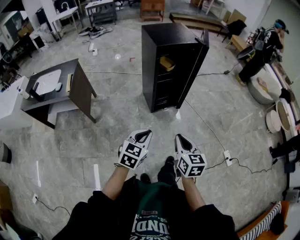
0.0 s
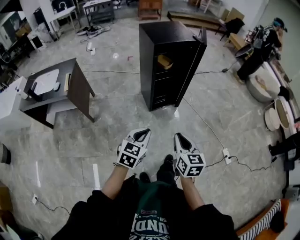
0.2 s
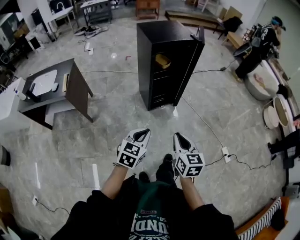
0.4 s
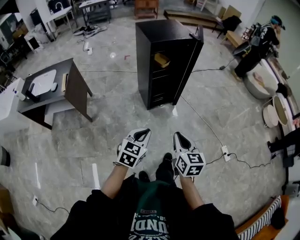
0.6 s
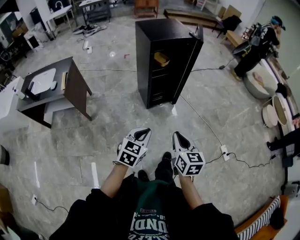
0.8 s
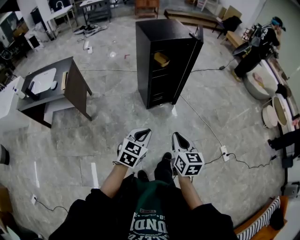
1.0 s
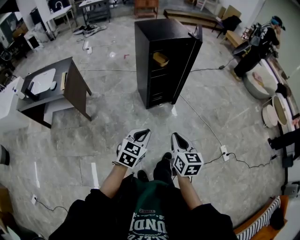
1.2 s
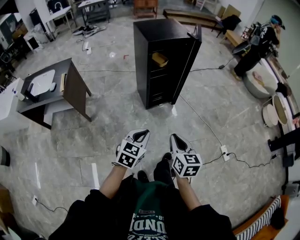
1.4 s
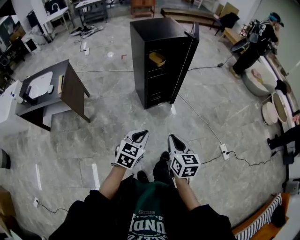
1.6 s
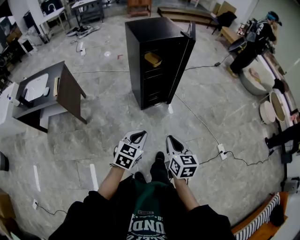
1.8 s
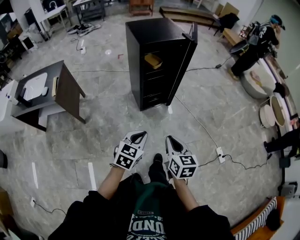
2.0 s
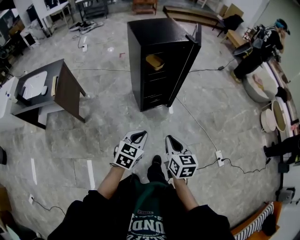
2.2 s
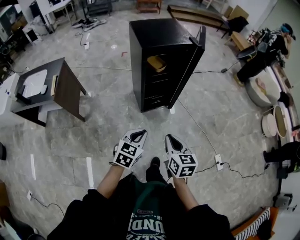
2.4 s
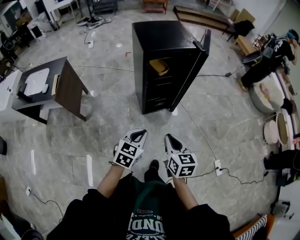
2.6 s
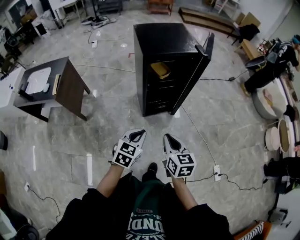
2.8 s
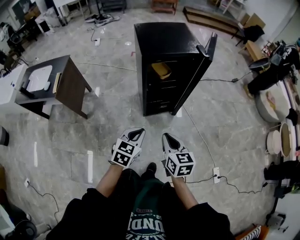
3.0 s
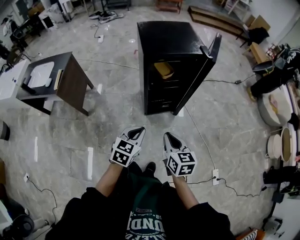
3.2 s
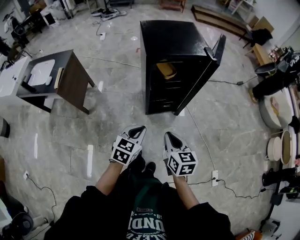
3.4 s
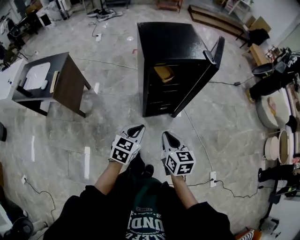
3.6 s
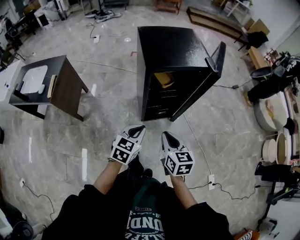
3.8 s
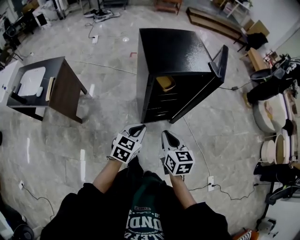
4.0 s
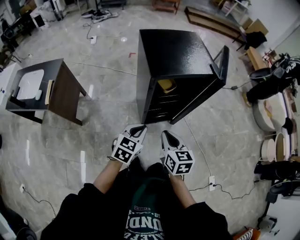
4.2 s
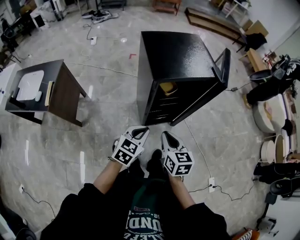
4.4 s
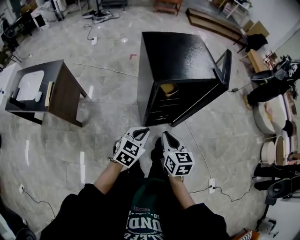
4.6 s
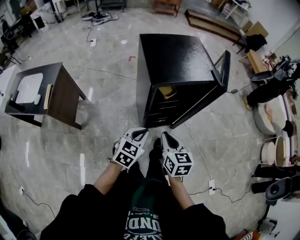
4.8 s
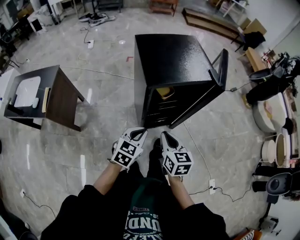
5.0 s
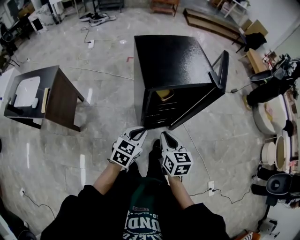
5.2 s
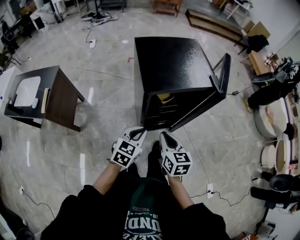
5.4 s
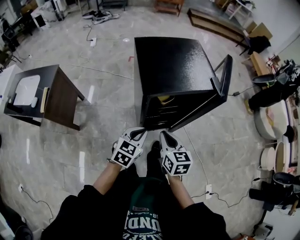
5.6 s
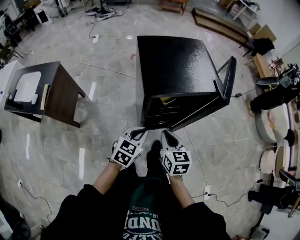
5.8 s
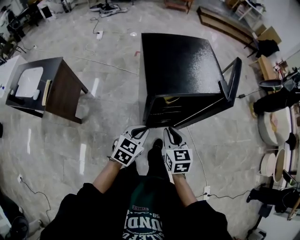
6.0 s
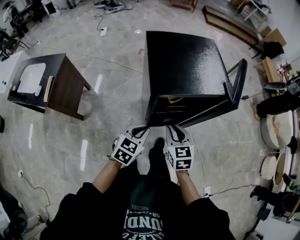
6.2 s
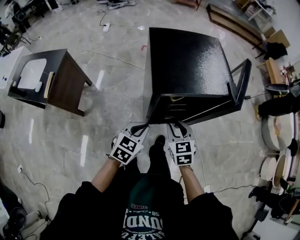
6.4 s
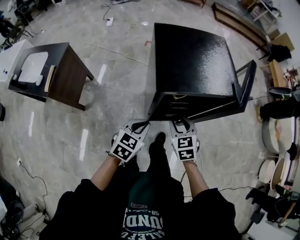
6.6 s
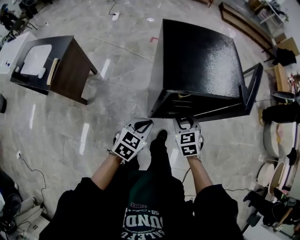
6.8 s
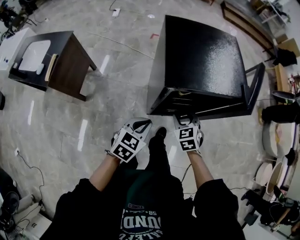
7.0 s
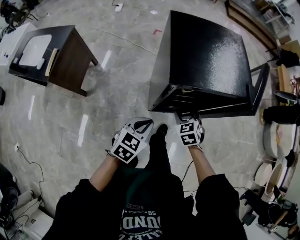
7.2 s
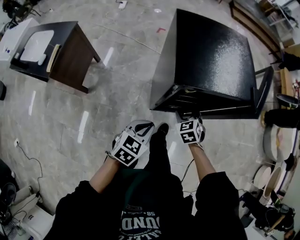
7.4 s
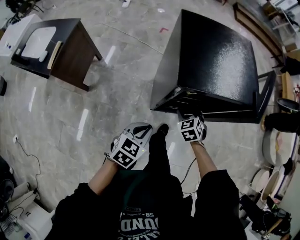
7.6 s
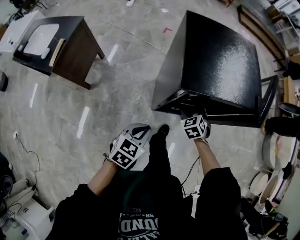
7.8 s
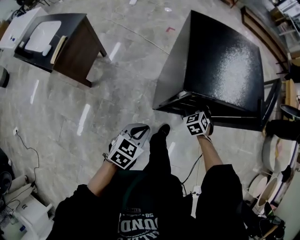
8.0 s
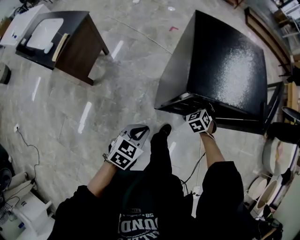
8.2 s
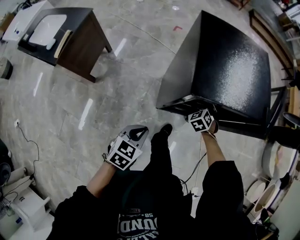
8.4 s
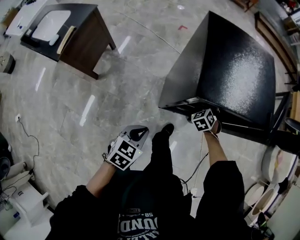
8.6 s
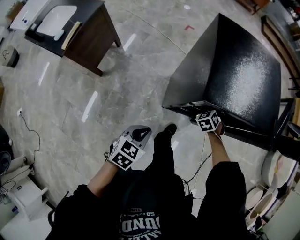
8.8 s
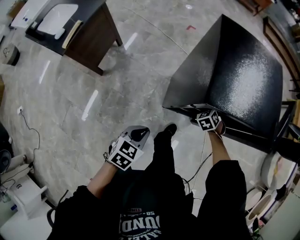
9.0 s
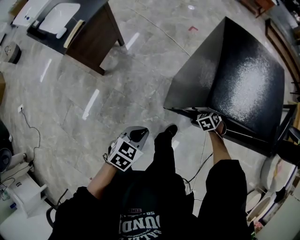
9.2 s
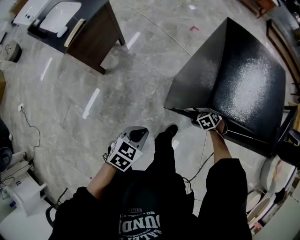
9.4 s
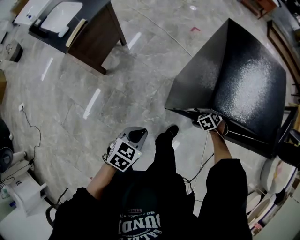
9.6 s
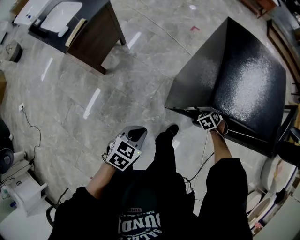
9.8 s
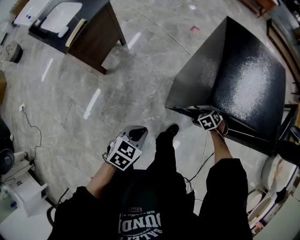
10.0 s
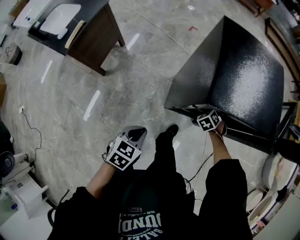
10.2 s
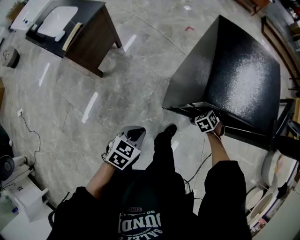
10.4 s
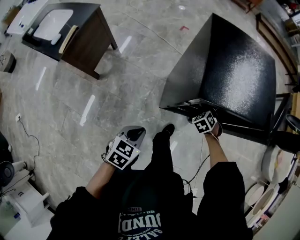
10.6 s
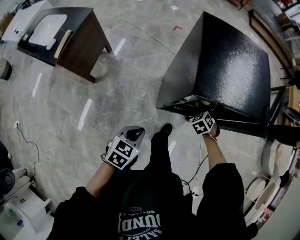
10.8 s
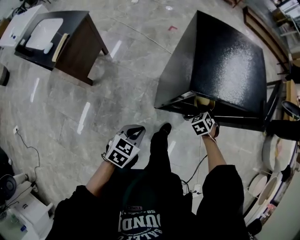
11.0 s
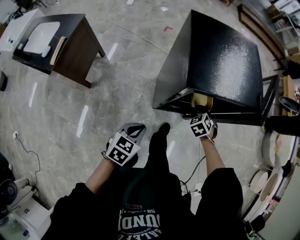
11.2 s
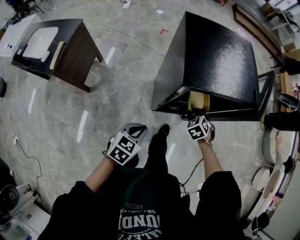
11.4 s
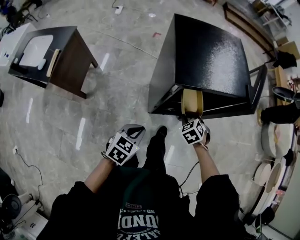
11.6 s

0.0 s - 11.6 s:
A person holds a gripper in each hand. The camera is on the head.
0.0 s - 1.4 s: There are only small adjustments of the grippers.
1.4 s - 2.8 s: Both grippers travel together forward, some 20 cm.
2.8 s - 4.4 s: Both grippers travel together forward, approximately 20 cm.
4.4 s - 5.8 s: The two grippers go roughly 10 cm forward.
5.8 s - 7.2 s: The right gripper goes roughly 15 cm downward and forward, rotates roughly 40 degrees, and opens up.
7.2 s - 8.8 s: The left gripper goes some 10 cm downward and to the left, while the right gripper moves forward and downward, some 15 cm, and swivels some 20 degrees.
8.8 s - 10.2 s: The right gripper closes up.
10.2 s - 11.6 s: The right gripper heads backward and upward, covering some 15 cm, while the left gripper ends up some 5 cm from where it was.

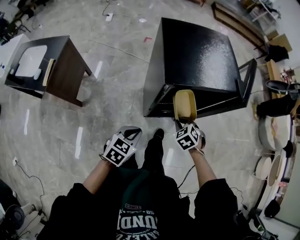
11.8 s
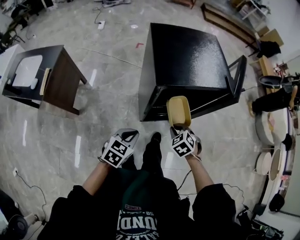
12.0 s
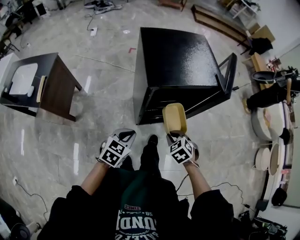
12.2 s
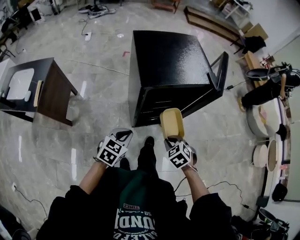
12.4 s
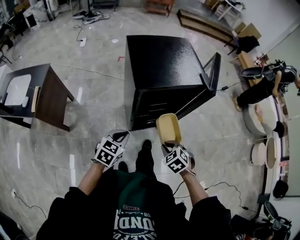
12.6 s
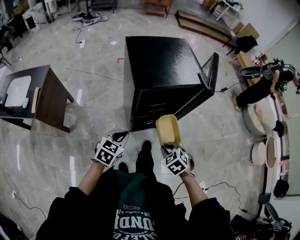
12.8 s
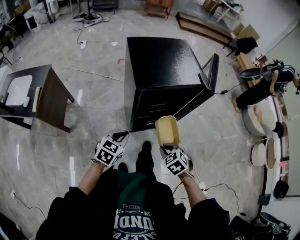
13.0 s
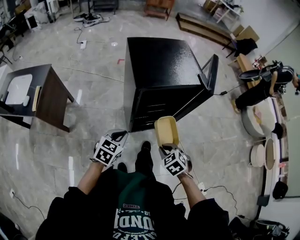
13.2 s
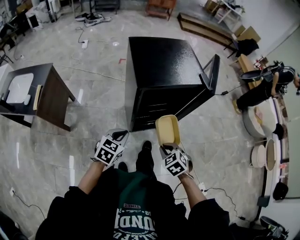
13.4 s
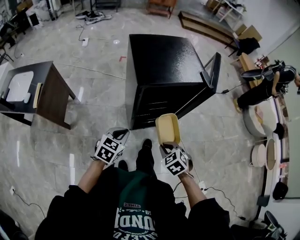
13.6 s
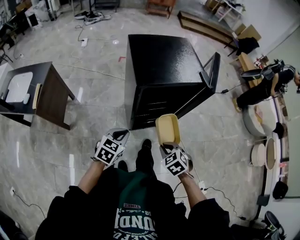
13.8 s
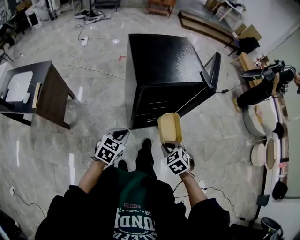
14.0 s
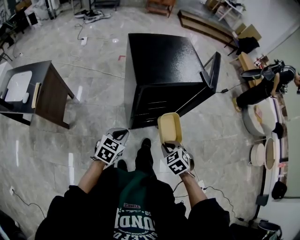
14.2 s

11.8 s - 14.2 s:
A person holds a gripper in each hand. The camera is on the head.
11.8 s - 13.0 s: The right gripper is displaced backward and upward by some 15 cm.
13.0 s - 14.2 s: The two grippers keep their place.

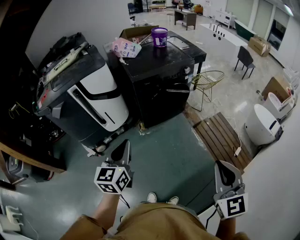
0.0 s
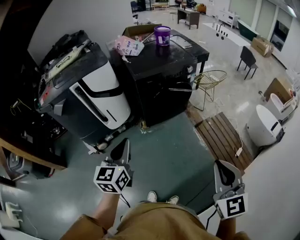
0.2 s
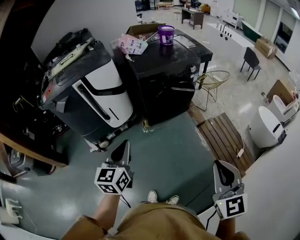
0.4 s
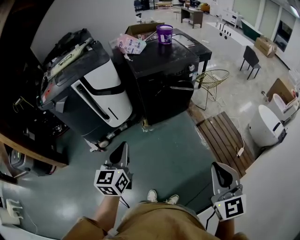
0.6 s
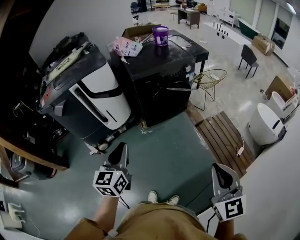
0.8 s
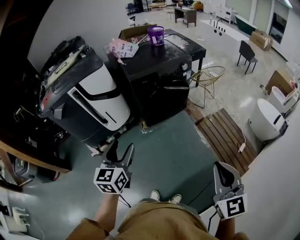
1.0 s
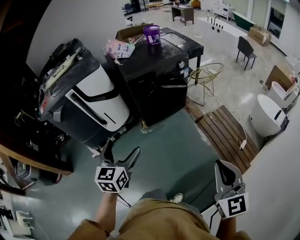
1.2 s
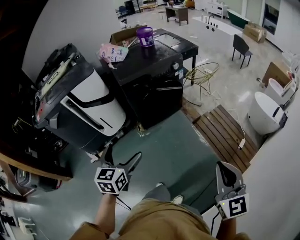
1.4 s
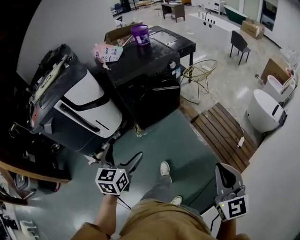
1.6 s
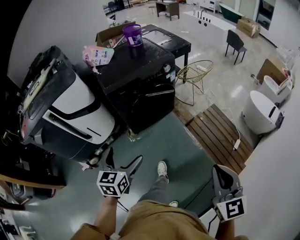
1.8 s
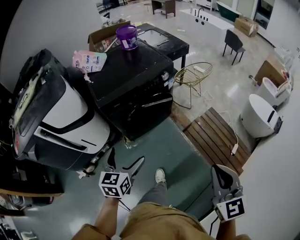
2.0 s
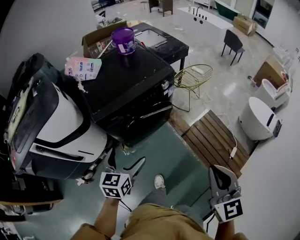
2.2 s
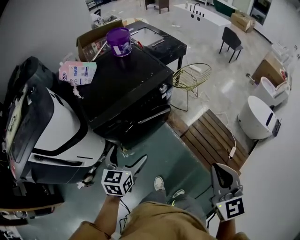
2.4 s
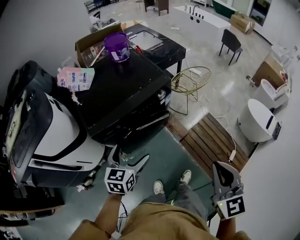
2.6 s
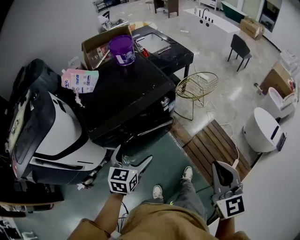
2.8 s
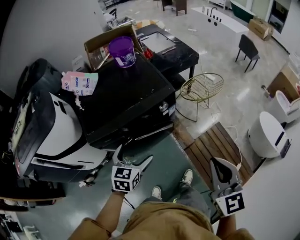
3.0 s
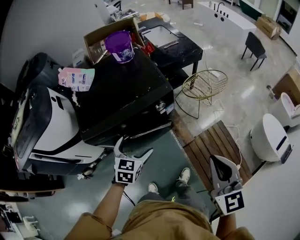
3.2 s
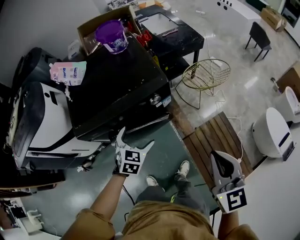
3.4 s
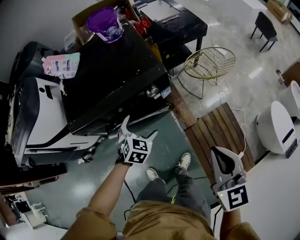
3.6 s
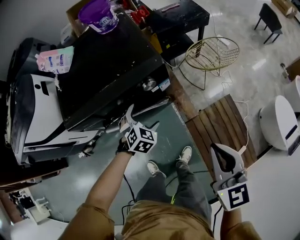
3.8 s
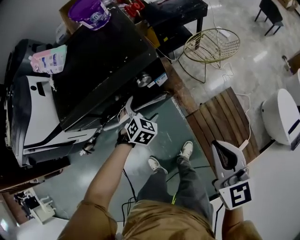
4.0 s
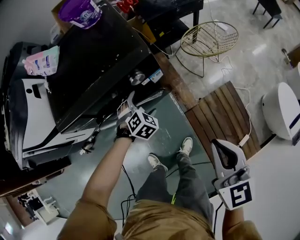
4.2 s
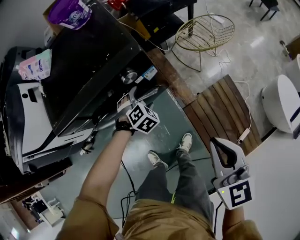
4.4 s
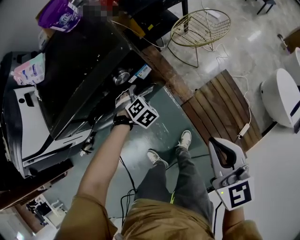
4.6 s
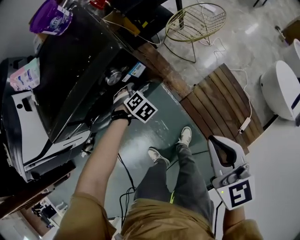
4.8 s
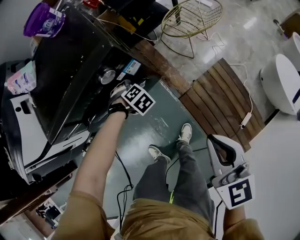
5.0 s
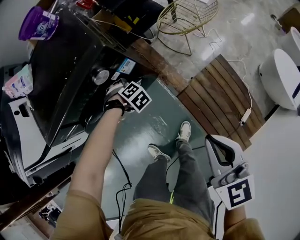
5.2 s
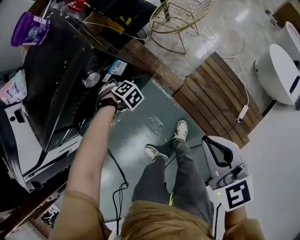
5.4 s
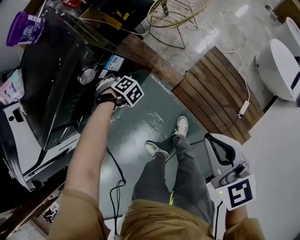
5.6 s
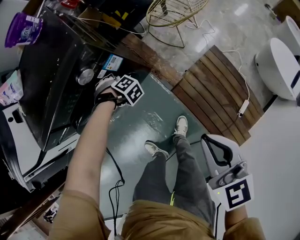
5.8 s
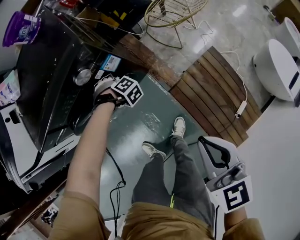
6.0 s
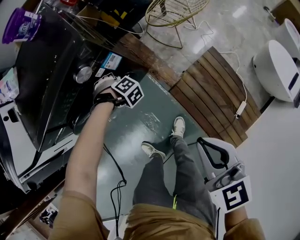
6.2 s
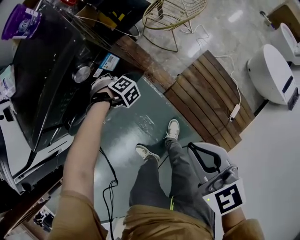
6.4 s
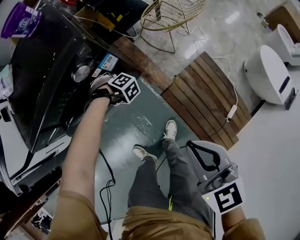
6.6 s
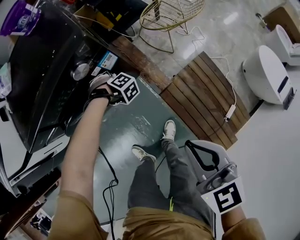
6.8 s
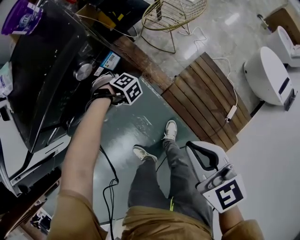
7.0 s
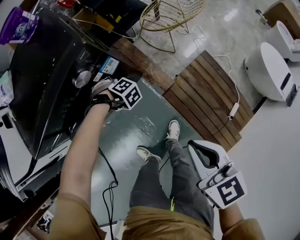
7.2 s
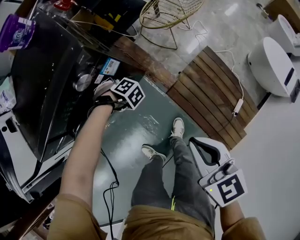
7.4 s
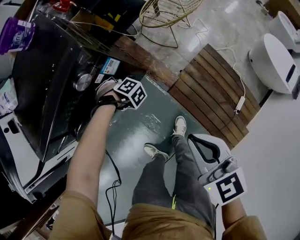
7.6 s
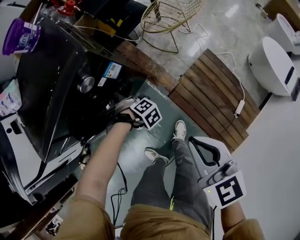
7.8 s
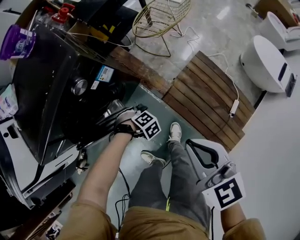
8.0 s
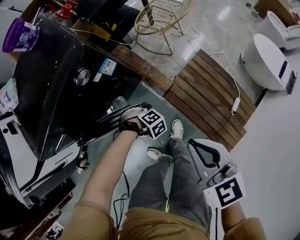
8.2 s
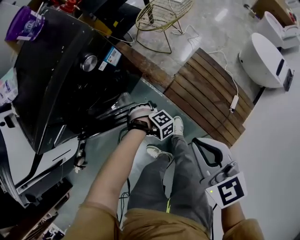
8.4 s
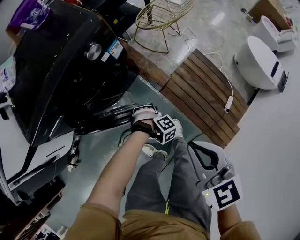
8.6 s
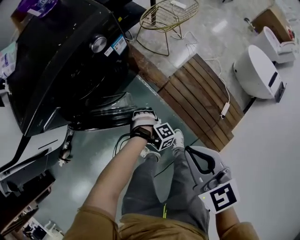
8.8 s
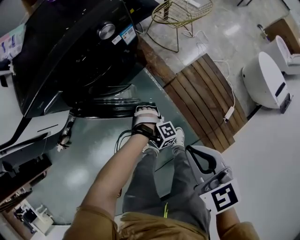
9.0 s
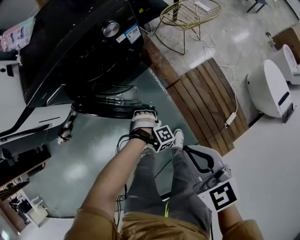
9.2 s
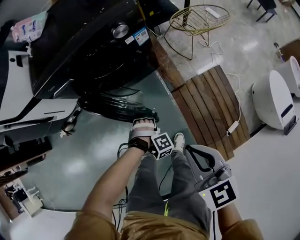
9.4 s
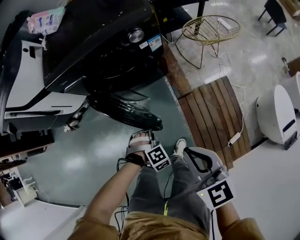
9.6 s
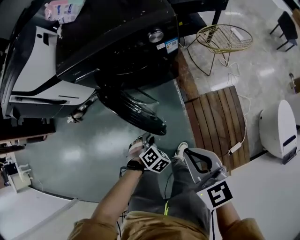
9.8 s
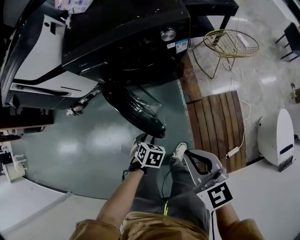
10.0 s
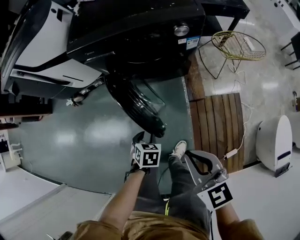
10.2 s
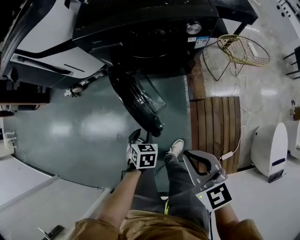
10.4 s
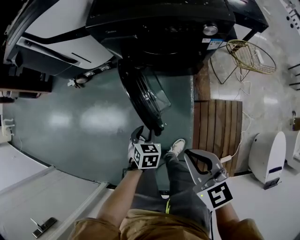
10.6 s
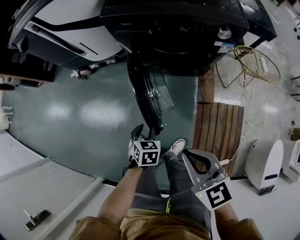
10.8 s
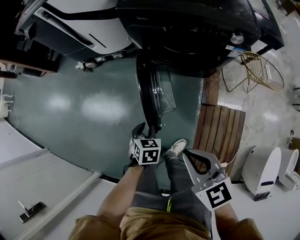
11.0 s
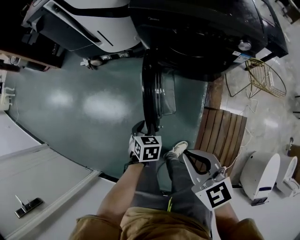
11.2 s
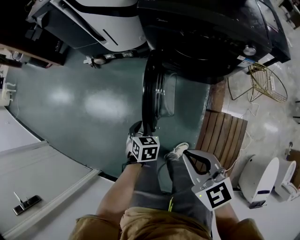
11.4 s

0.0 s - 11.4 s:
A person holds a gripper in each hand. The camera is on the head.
0.0 s - 1.4 s: The grippers both shift to the right by approximately 5 cm. The left gripper opens.
1.4 s - 2.8 s: The two grippers travel together, forward, approximately 50 cm.
2.8 s - 4.2 s: The left gripper moves downward, forward and to the right, roughly 35 cm, and swivels roughly 50 degrees; the right gripper is displaced forward, downward and to the right by roughly 25 cm, and turns by some 20 degrees.
4.2 s - 5.6 s: The right gripper travels downward by approximately 10 cm, while the left gripper goes approximately 15 cm downward, rotates approximately 40 degrees, and closes its fingers.
5.6 s - 7.2 s: The right gripper shifts by roughly 5 cm.
7.2 s - 8.6 s: The right gripper moves approximately 15 cm; the left gripper changes place by about 25 cm, and changes its angle by approximately 30 degrees.
8.6 s - 10.0 s: The right gripper changes its angle by some 40 degrees. Meanwhile the left gripper moves about 20 cm, and rolls counterclockwise, seen from behind, by roughly 100 degrees.
10.0 s - 11.4 s: The left gripper ends up about 20 cm from where it was, and changes its angle by approximately 40 degrees, while the right gripper changes place by about 15 cm, and changes its angle by some 30 degrees.
